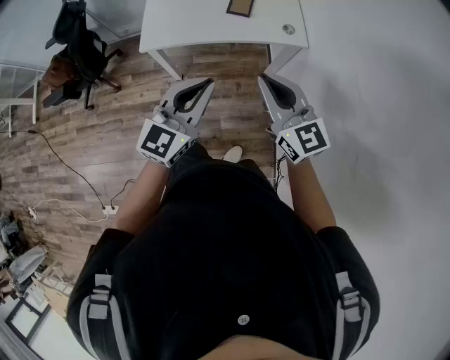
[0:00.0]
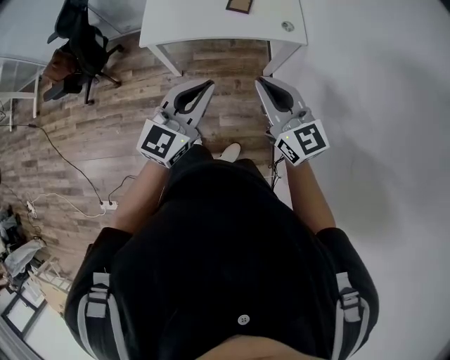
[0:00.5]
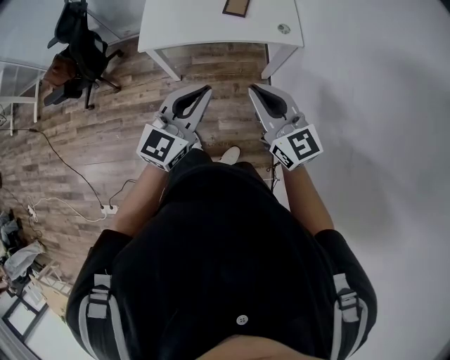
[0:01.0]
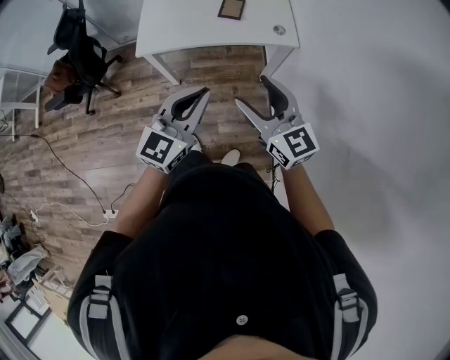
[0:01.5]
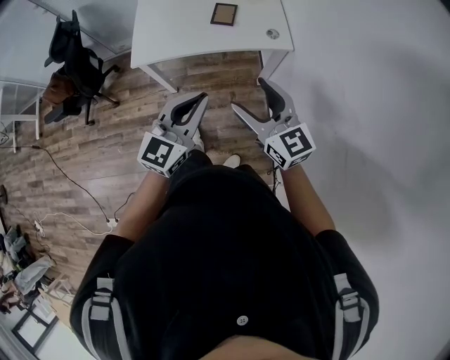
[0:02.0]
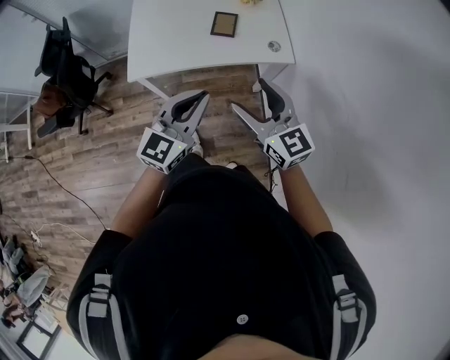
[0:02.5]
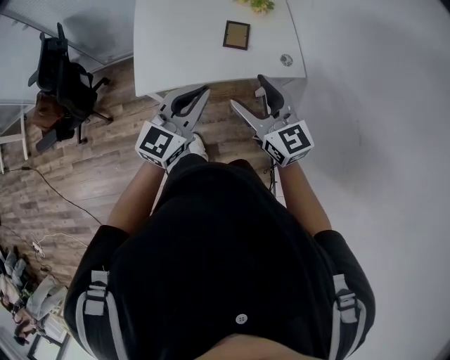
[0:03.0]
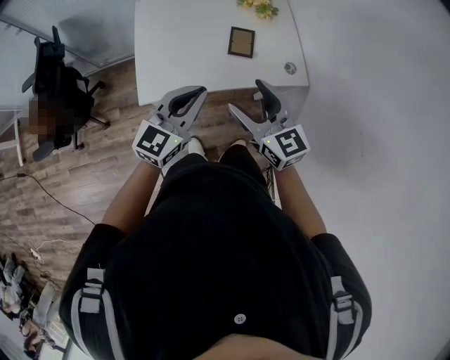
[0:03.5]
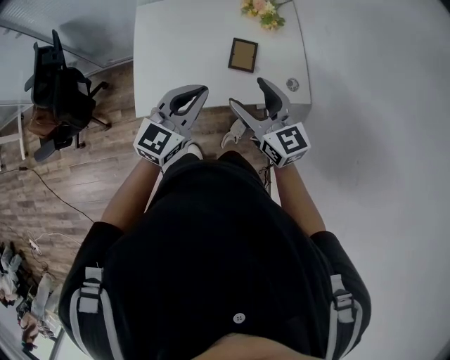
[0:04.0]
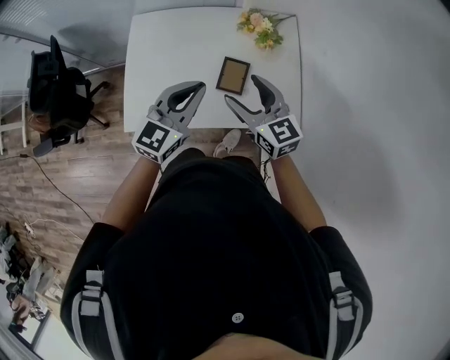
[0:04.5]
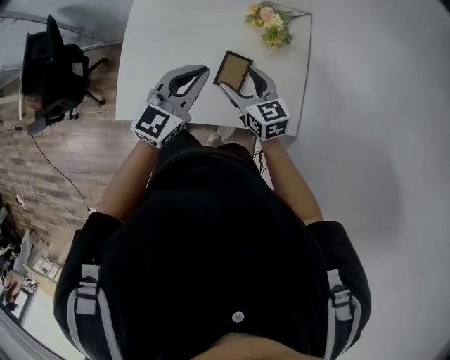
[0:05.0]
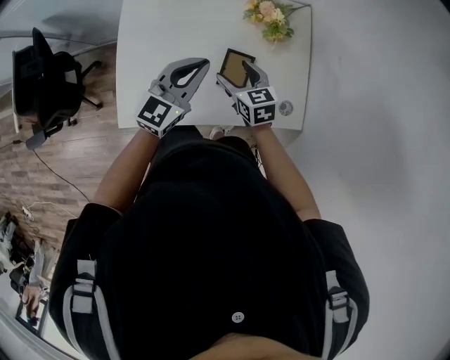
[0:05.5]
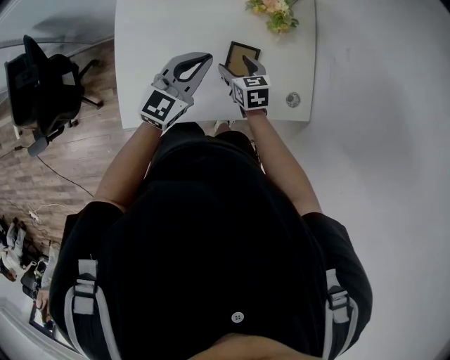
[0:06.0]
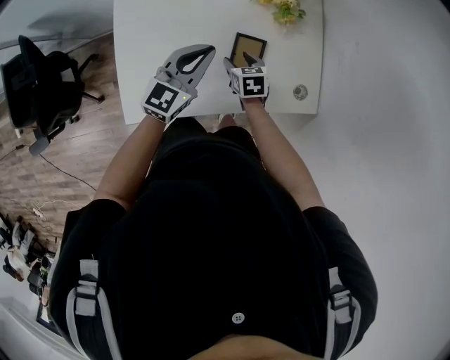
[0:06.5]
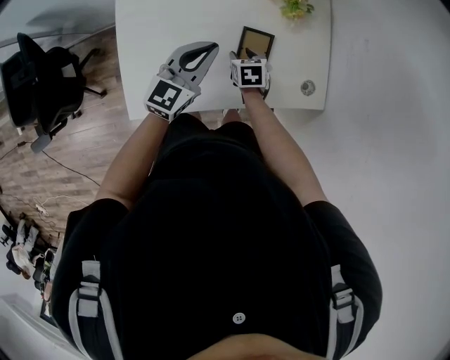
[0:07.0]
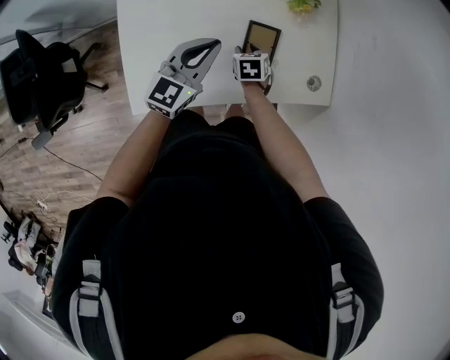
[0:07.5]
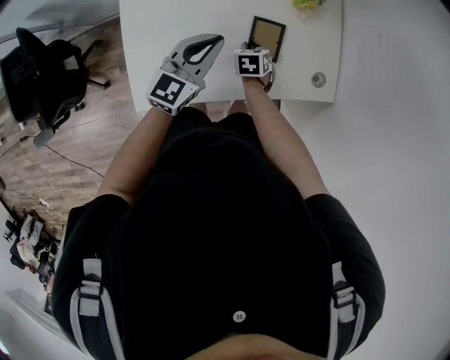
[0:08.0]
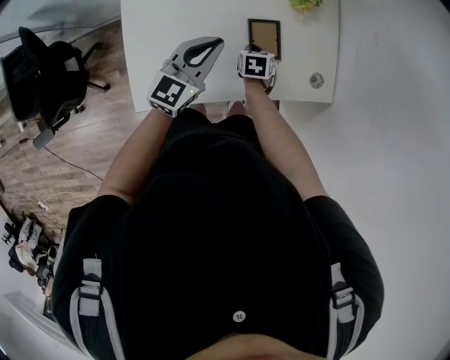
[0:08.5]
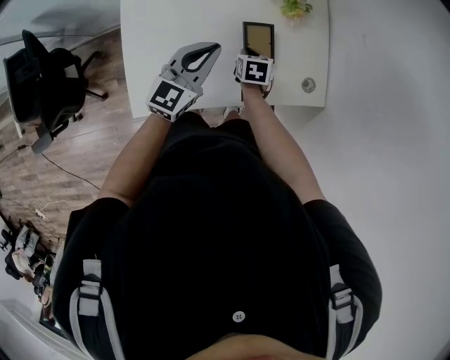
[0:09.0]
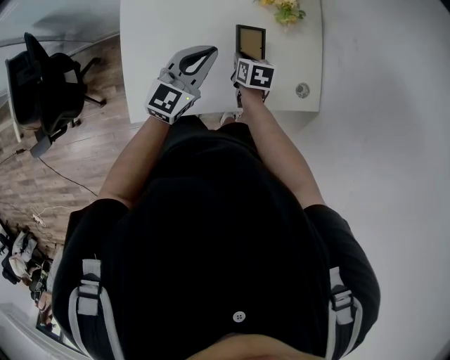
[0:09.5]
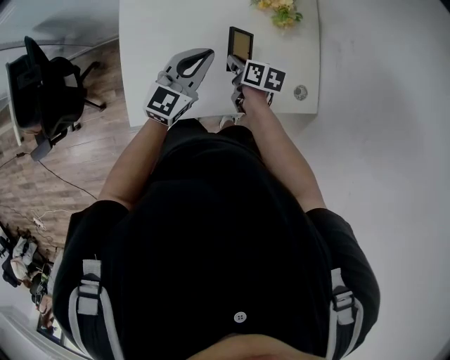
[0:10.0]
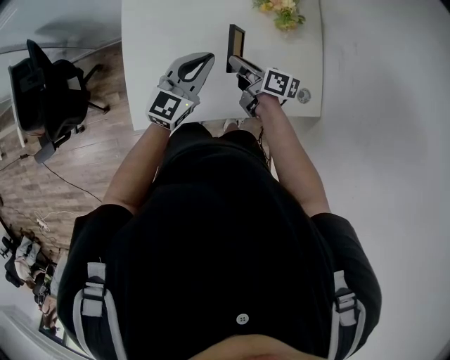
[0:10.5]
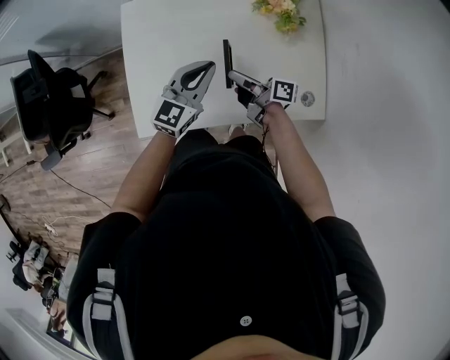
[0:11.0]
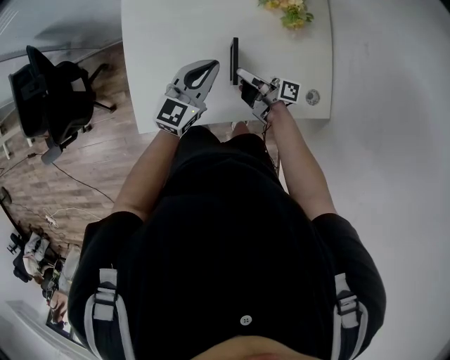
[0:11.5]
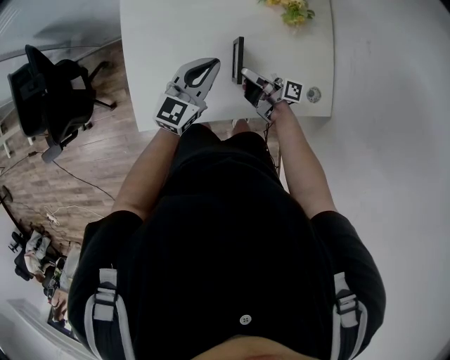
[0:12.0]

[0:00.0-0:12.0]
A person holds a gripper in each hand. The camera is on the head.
0:00.0 to 0:02.0: The right gripper opens up.
0:02.0 to 0:04.0: The two grippers go roughly 35 cm forward and to the left.
0:04.0 to 0:06.0: The left gripper shifts roughly 25 cm forward. The right gripper shifts approximately 35 cm downward and forward, and tips its fingers downward by about 30 degrees.
0:06.0 to 0:08.0: The right gripper travels downward by about 10 cm, changes its angle by about 30 degrees, and closes; the left gripper ends up about 5 cm from where it was.
0:08.0 to 0:10.0: The right gripper moves upward, roughly 10 cm, and rotates some 40 degrees.
0:10.0 to 0:12.0: The right gripper tilts its fingers roughly 50 degrees upward.

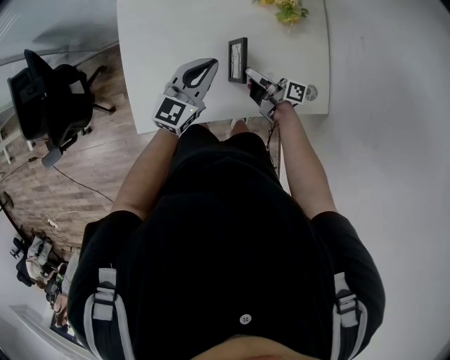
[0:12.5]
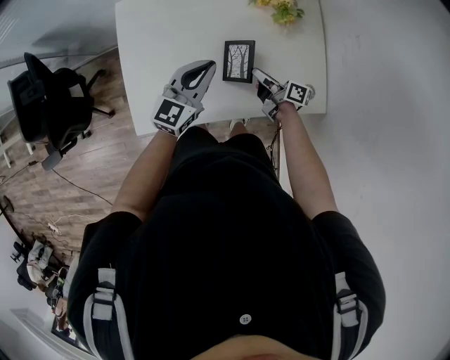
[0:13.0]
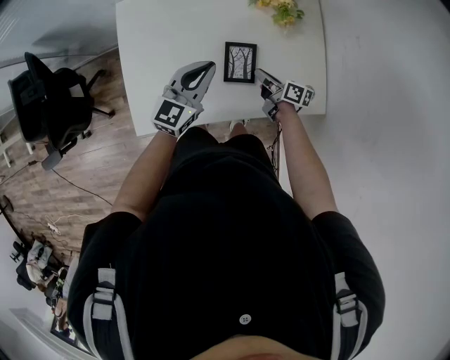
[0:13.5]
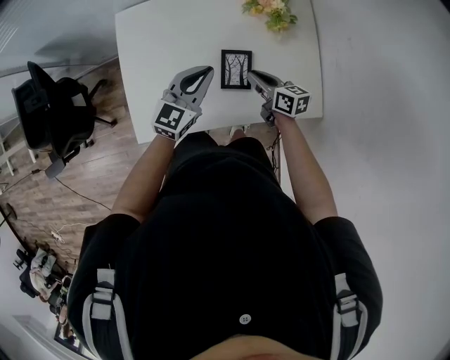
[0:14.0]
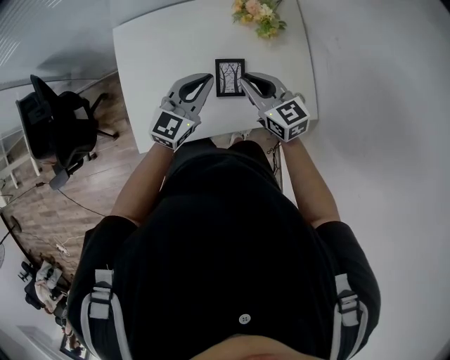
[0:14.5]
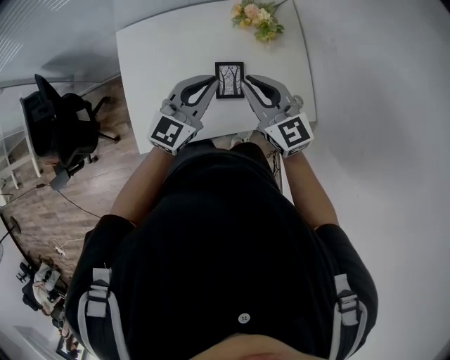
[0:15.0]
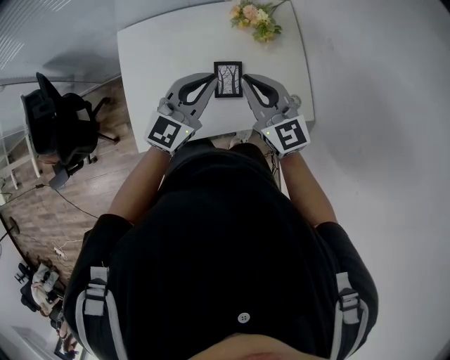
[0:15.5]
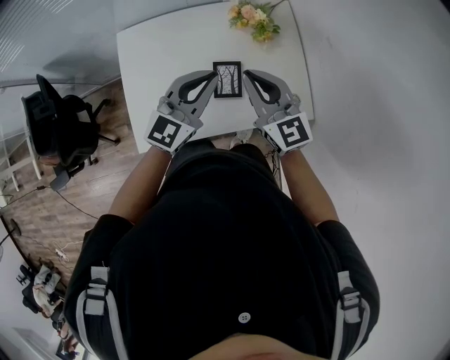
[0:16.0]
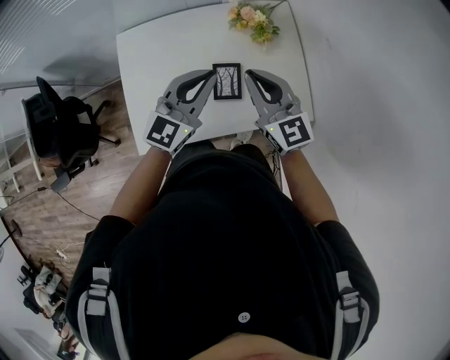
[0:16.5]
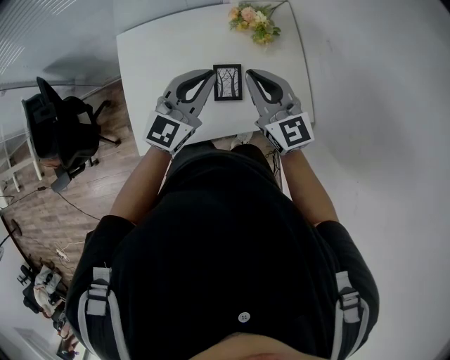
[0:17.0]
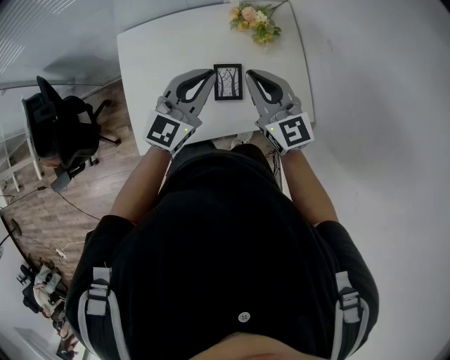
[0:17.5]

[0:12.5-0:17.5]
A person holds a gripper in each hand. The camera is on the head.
0:12.5 to 0:15.0: The left gripper moves upward, approximately 10 cm, while the right gripper moves upward, approximately 25 cm, and rolls counterclockwise, seen from behind, by roughly 80 degrees.
0:15.0 to 0:17.5: The grippers stay close to where they were, moving slightly.

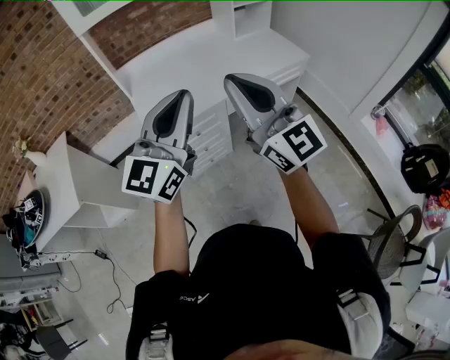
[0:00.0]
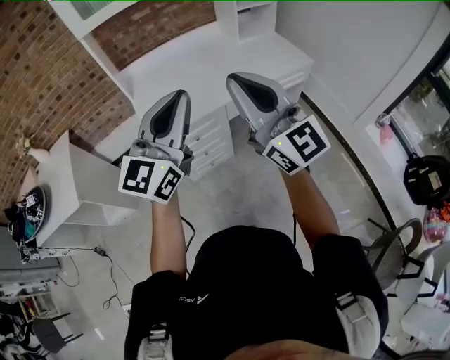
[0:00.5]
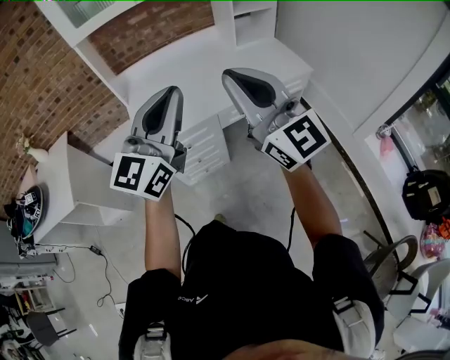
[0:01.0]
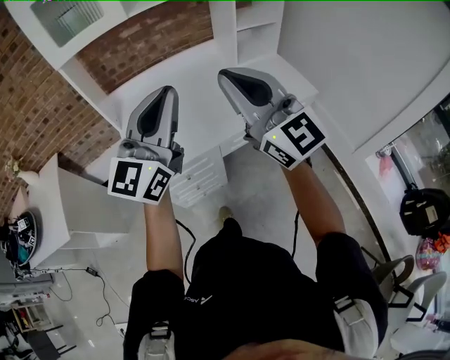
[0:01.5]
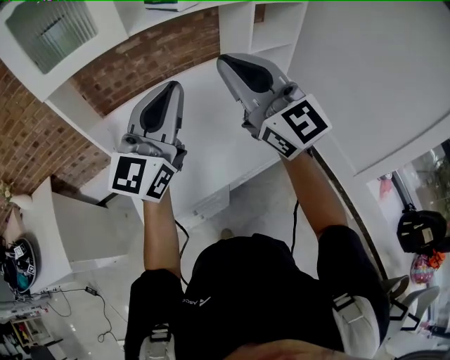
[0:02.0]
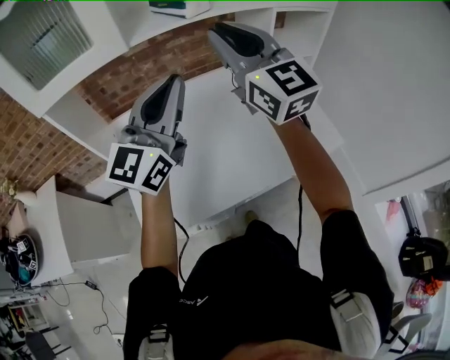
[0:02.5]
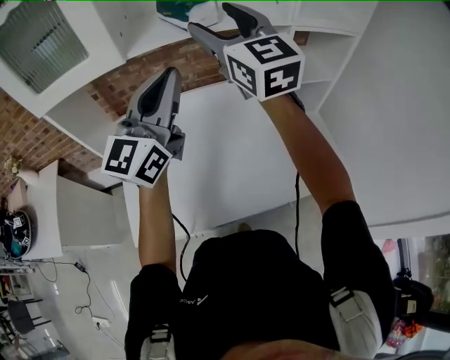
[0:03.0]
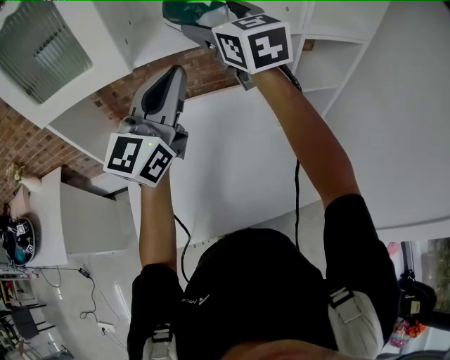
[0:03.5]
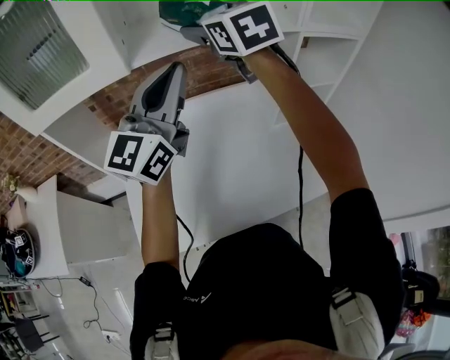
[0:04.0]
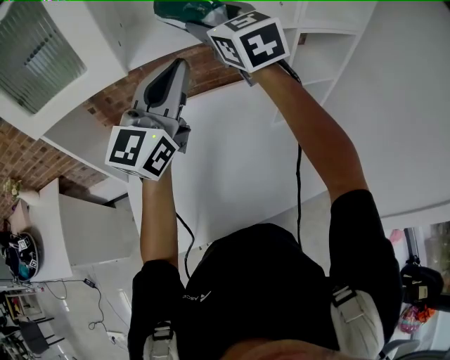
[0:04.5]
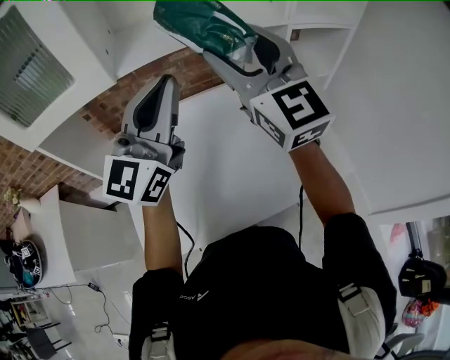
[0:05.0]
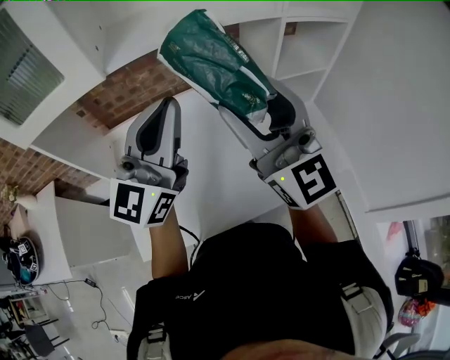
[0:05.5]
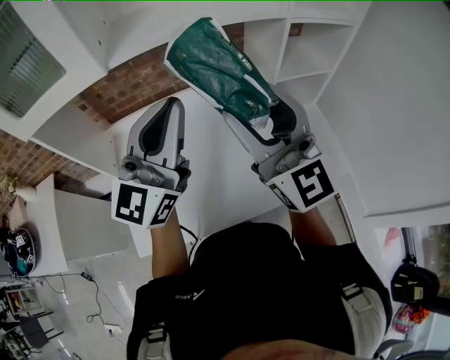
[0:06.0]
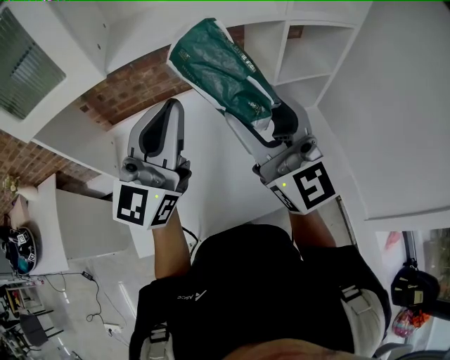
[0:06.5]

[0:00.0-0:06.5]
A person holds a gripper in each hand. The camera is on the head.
0:00.0 to 0:02.0: Both grippers are carried forward, about 40 cm.
0:02.0 to 0:04.5: The two grippers go about 30 cm forward. The right gripper rotates about 20 degrees, and opens.
0:04.5 to 0:06.5: The left gripper is displaced backward by some 5 cm. Meanwhile the right gripper shifts about 20 cm backward and to the right, and changes its angle by about 30 degrees.

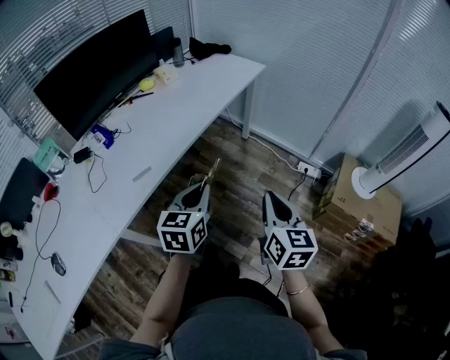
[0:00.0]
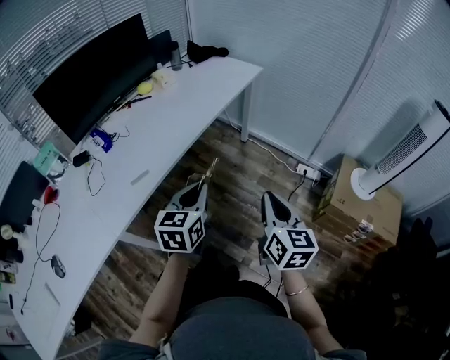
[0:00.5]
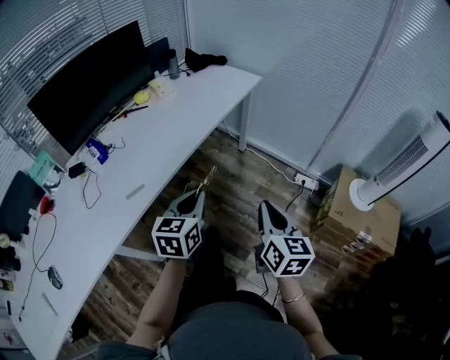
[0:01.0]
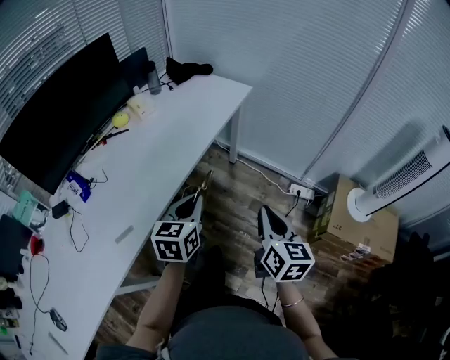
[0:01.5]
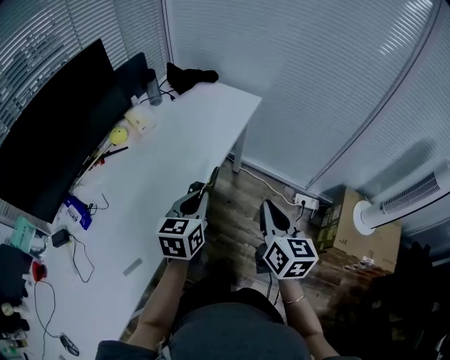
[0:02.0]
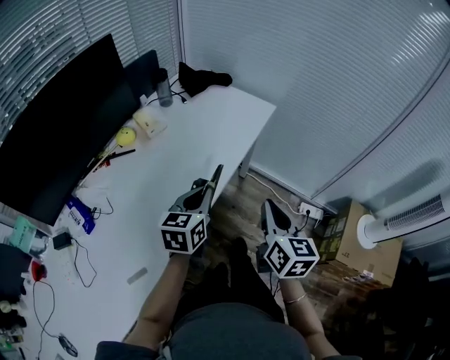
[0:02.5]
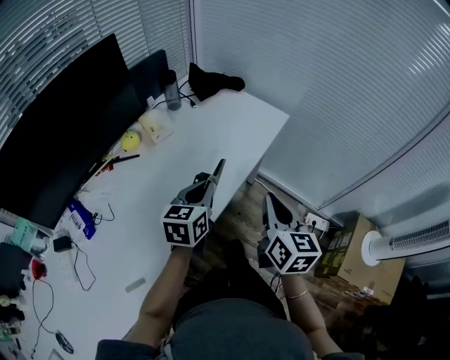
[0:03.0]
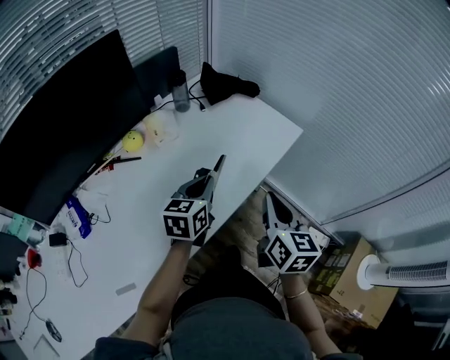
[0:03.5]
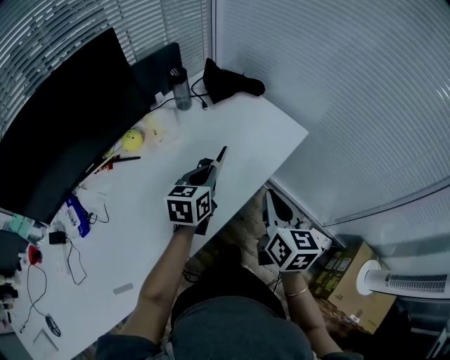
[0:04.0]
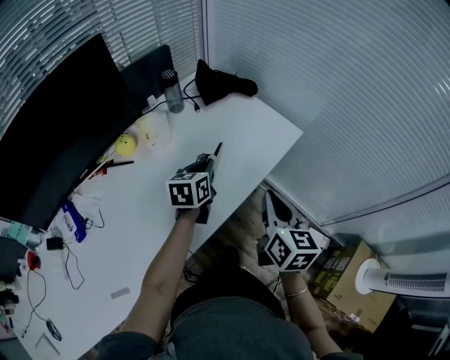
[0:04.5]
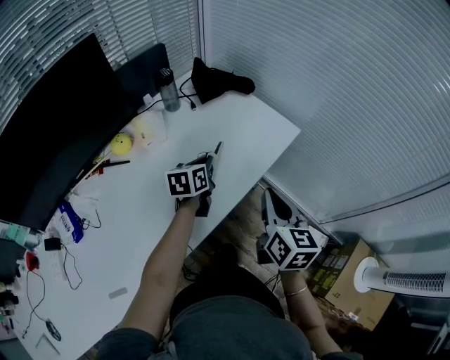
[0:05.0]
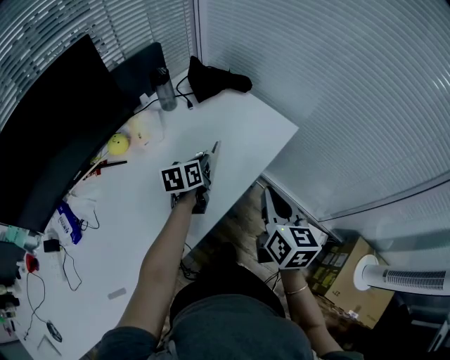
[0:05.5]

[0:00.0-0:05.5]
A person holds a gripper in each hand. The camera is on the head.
0:00.0 to 0:02.0: Both grippers move forward, roughly 30 cm.
0:02.0 to 0:03.5: Both grippers travel together forward, approximately 20 cm.
0:03.5 to 0:05.5: The right gripper shifts by about 5 cm, while the left gripper is displaced forward and downward by about 15 cm.
